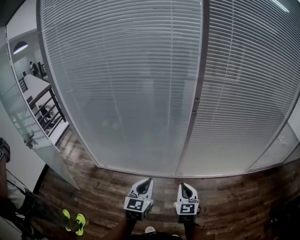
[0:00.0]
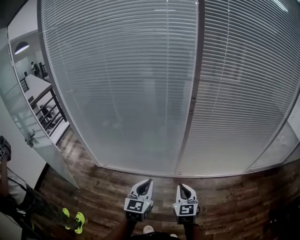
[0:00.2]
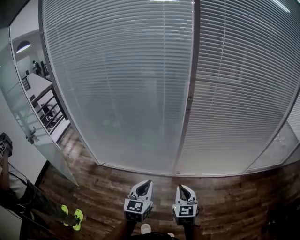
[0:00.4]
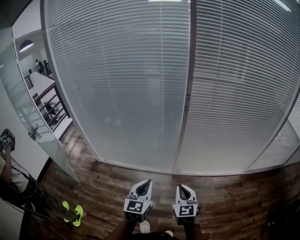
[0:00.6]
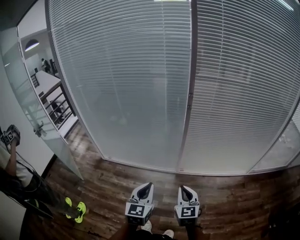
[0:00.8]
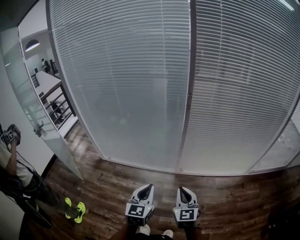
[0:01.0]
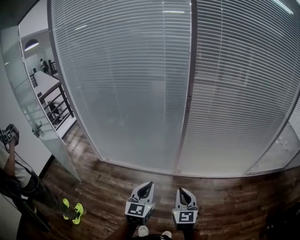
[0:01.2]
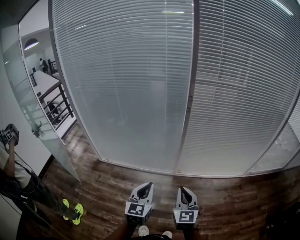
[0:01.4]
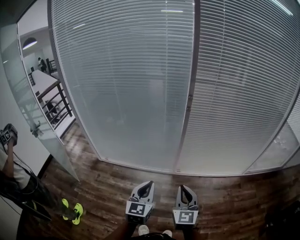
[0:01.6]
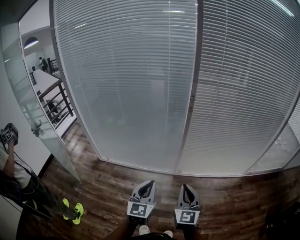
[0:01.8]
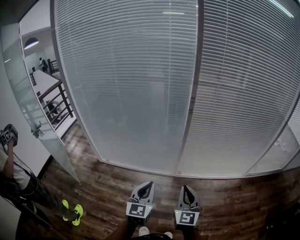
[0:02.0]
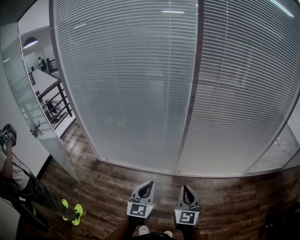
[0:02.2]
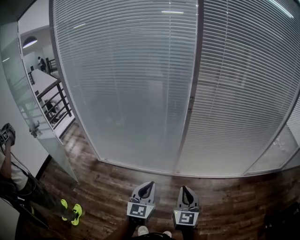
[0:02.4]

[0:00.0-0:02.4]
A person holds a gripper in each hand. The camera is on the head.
0.0 to 1.2 s: The two grippers go about 10 cm backward and to the right.
1.2 to 2.4 s: The grippers move only a little.

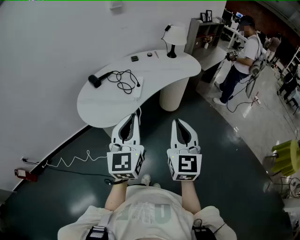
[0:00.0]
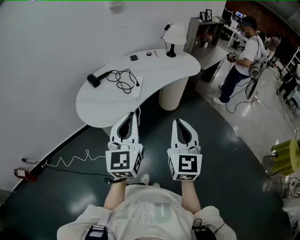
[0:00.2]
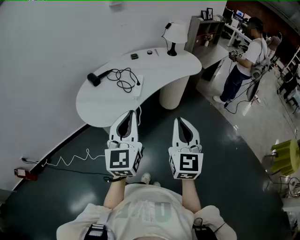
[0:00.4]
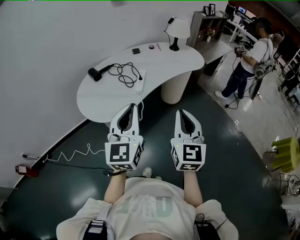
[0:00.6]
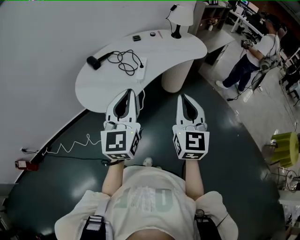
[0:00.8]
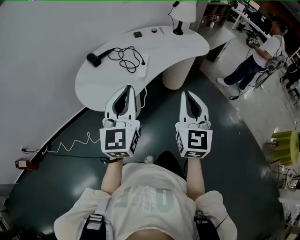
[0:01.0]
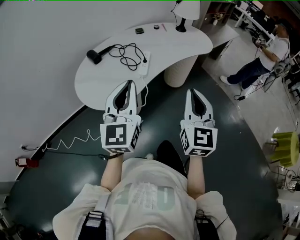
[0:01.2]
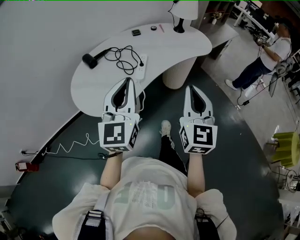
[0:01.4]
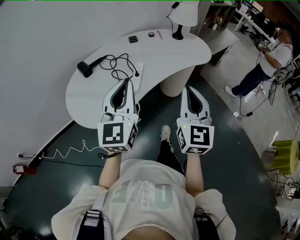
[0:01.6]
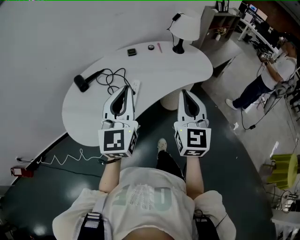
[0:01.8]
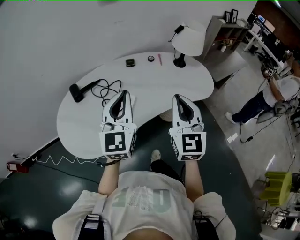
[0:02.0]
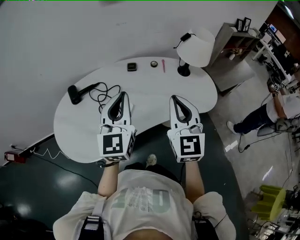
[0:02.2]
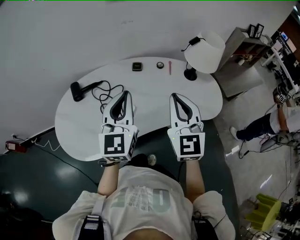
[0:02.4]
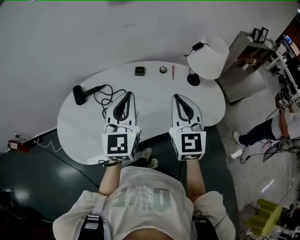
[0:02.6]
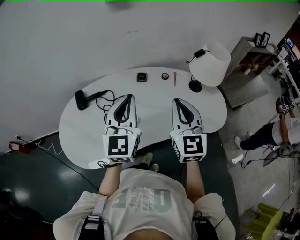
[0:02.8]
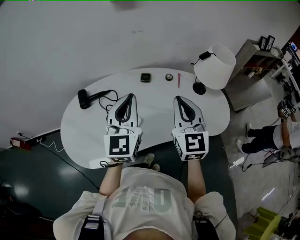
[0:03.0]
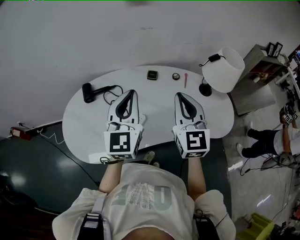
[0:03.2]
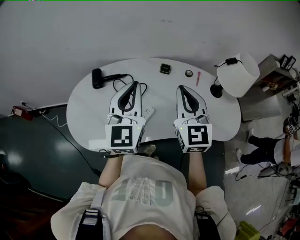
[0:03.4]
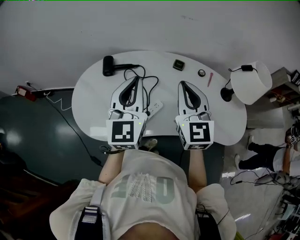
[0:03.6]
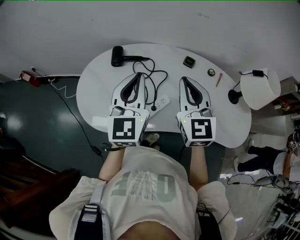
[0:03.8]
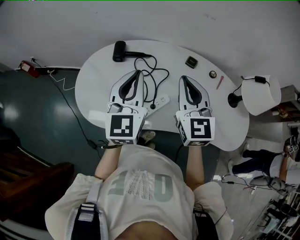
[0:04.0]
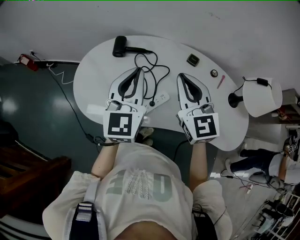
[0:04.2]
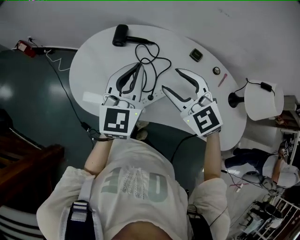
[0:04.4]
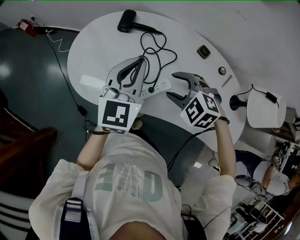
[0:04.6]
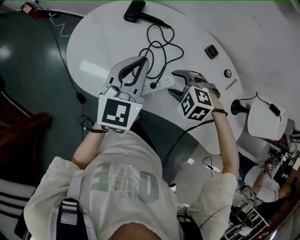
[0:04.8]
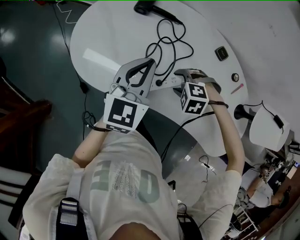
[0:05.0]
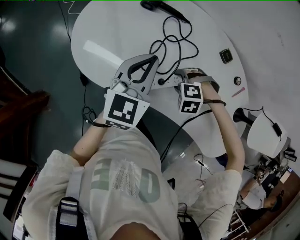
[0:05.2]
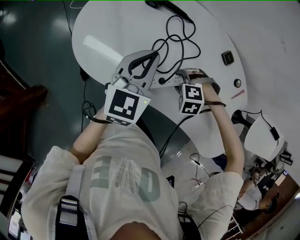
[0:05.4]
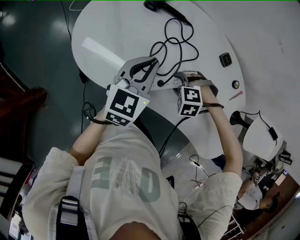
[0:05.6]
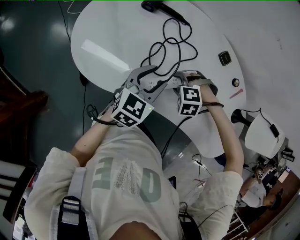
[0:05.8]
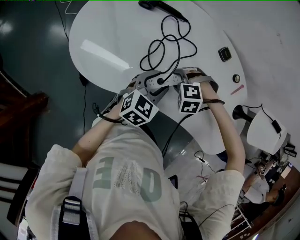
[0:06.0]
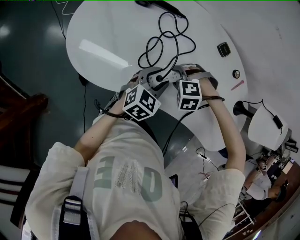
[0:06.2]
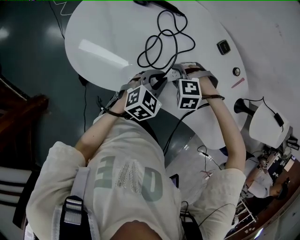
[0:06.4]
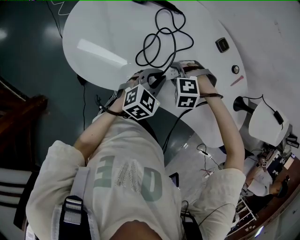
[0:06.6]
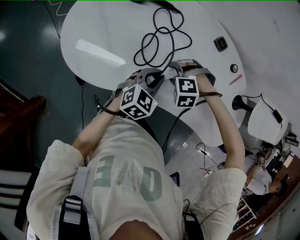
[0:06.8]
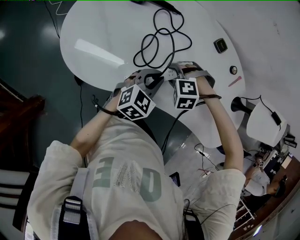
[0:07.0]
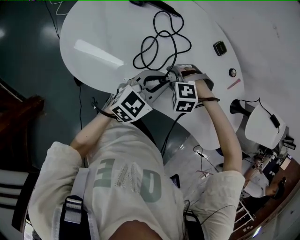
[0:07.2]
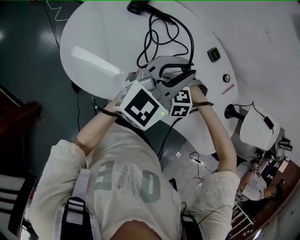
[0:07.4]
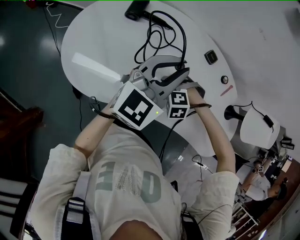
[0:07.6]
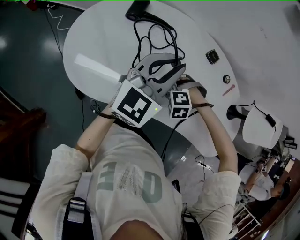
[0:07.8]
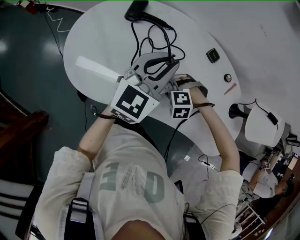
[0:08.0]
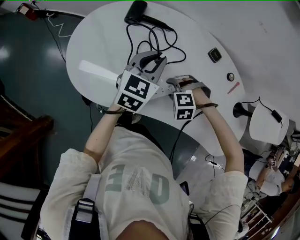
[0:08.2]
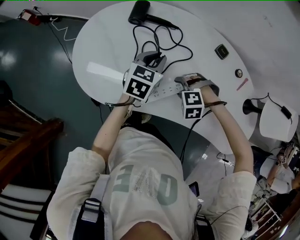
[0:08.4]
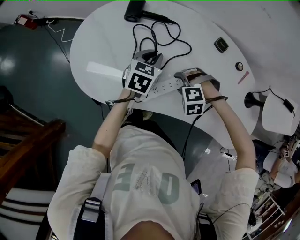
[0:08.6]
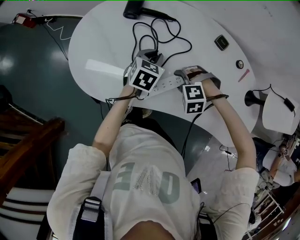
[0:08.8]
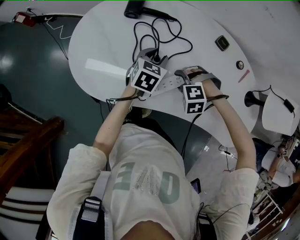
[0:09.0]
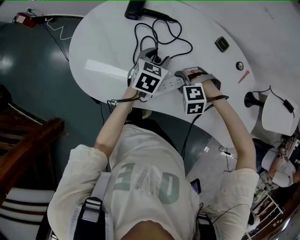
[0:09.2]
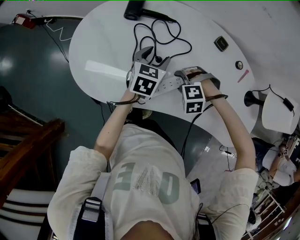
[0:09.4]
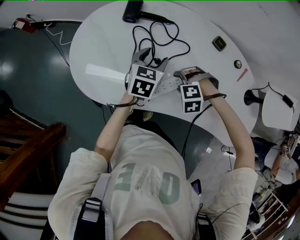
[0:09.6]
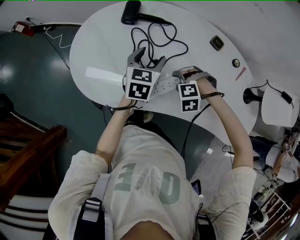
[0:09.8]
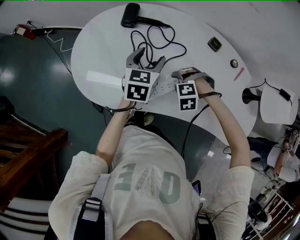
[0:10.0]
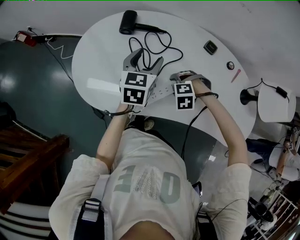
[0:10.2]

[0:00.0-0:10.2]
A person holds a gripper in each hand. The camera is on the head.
0.0 to 1.4 s: The two grippers go approximately 10 cm forward.
1.4 to 3.0 s: The left gripper moves approximately 40 cm, and turns by roughly 20 degrees; the right gripper moves roughly 40 cm, and changes its angle by roughly 30 degrees.
3.0 to 4.4 s: The right gripper changes place by roughly 20 cm, turns by roughly 70 degrees, and opens. The left gripper moves roughly 15 cm, and swivels roughly 20 degrees.
4.4 to 5.8 s: The two grippers go roughly 20 cm downward. The right gripper points its fingers roughly 60 degrees further downward; the left gripper rotates about 30 degrees, and opens up.
5.8 to 7.2 s: The left gripper closes its fingers.
7.2 to 8.8 s: The left gripper reaches approximately 15 cm upward, then returns, and turns by roughly 30 degrees.
8.8 to 10.2 s: The left gripper travels upward by about 10 cm, and opens.

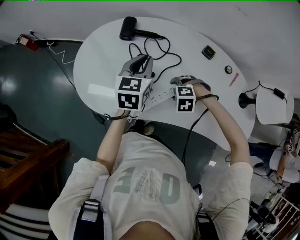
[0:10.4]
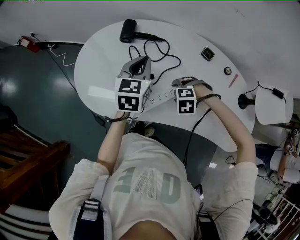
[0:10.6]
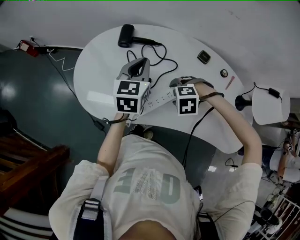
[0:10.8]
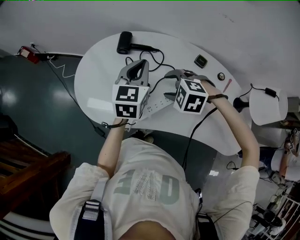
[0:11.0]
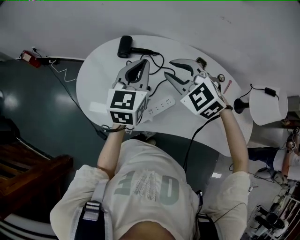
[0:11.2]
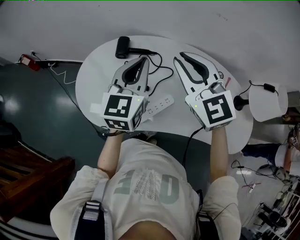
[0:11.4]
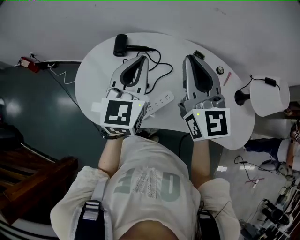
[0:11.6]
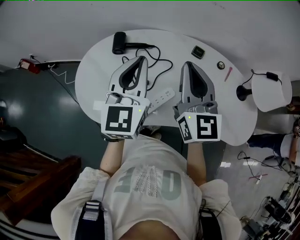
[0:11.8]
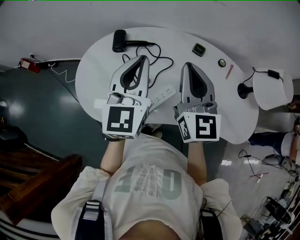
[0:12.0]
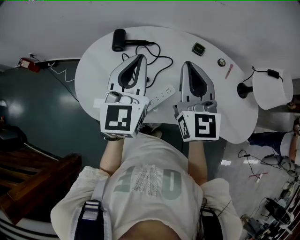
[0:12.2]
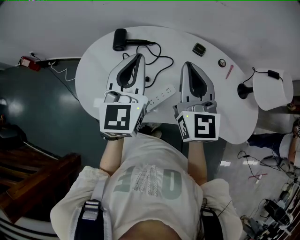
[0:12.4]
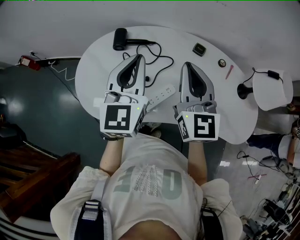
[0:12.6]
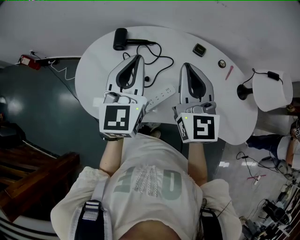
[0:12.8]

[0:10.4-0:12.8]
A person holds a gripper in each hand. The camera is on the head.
10.4 to 11.6 s: The left gripper travels upward by about 15 cm, and rotates roughly 20 degrees. The right gripper moves upward, roughly 35 cm, tips its fingers upward by about 90 degrees, and closes.
11.6 to 12.8 s: The right gripper shifts by roughly 5 cm.

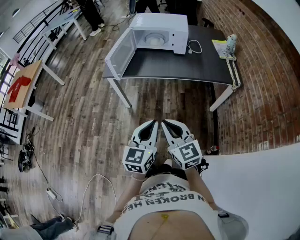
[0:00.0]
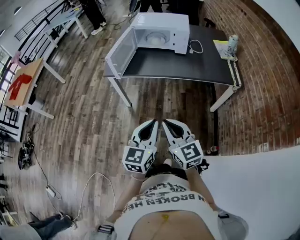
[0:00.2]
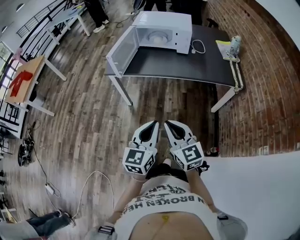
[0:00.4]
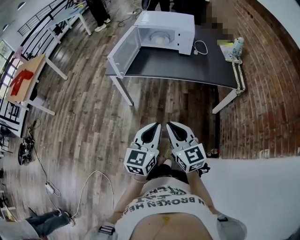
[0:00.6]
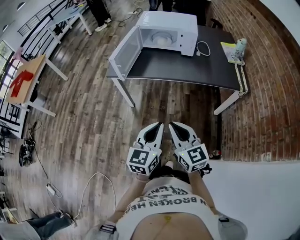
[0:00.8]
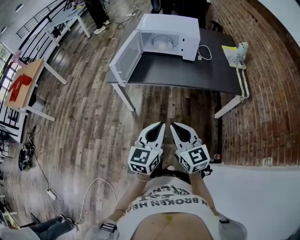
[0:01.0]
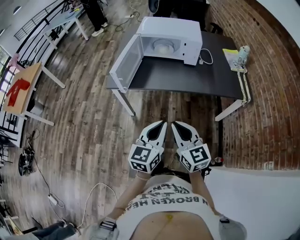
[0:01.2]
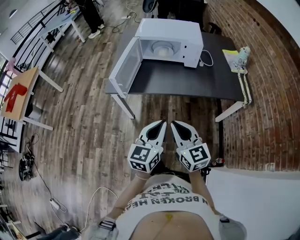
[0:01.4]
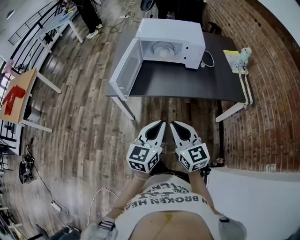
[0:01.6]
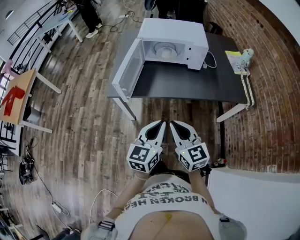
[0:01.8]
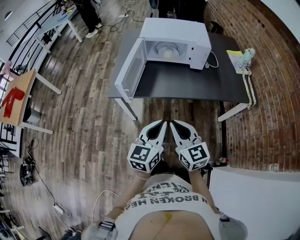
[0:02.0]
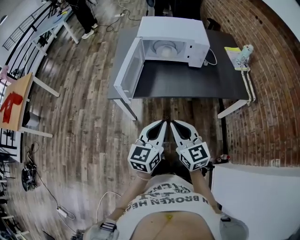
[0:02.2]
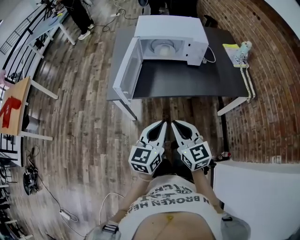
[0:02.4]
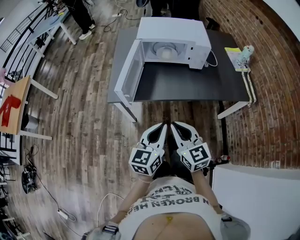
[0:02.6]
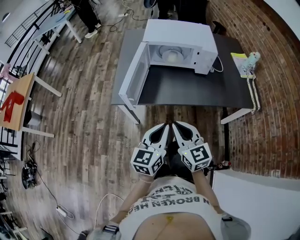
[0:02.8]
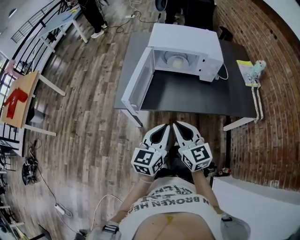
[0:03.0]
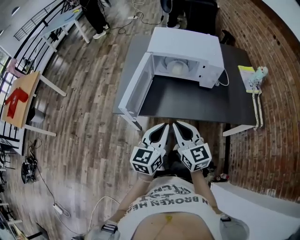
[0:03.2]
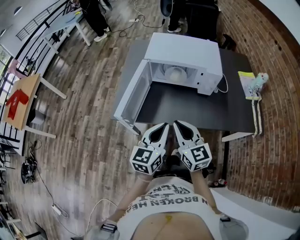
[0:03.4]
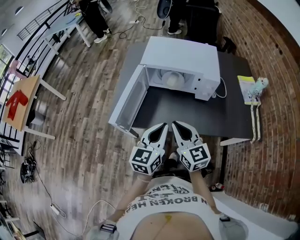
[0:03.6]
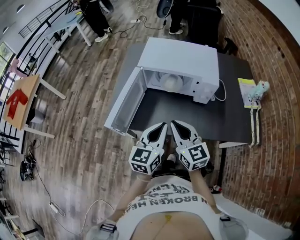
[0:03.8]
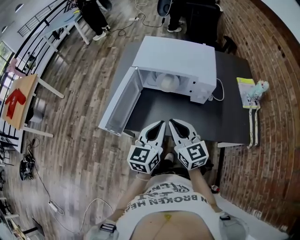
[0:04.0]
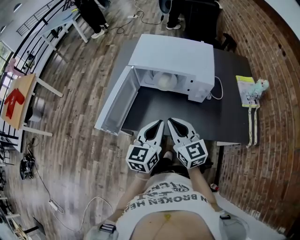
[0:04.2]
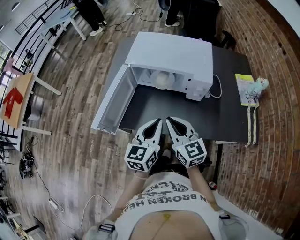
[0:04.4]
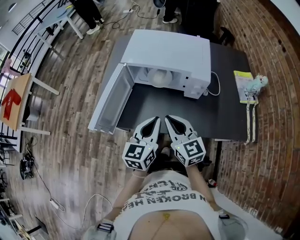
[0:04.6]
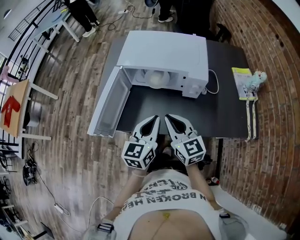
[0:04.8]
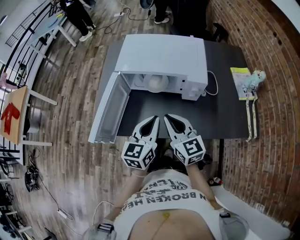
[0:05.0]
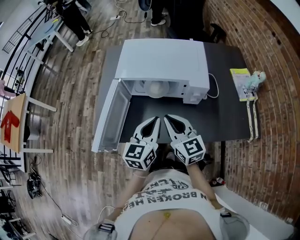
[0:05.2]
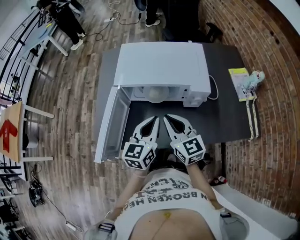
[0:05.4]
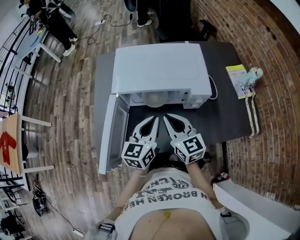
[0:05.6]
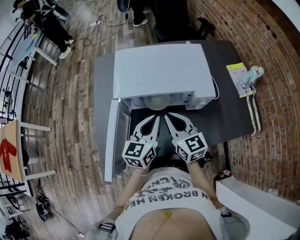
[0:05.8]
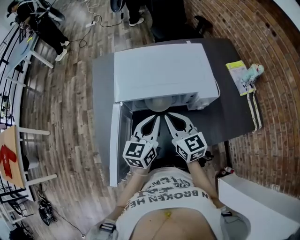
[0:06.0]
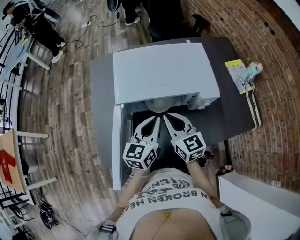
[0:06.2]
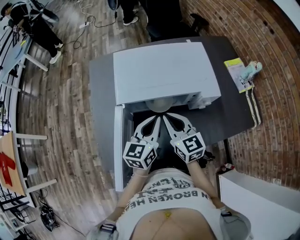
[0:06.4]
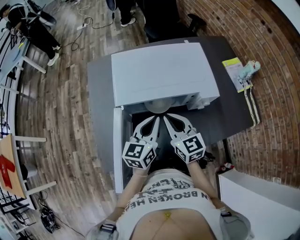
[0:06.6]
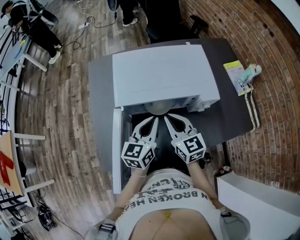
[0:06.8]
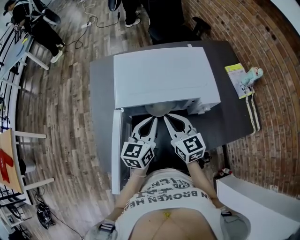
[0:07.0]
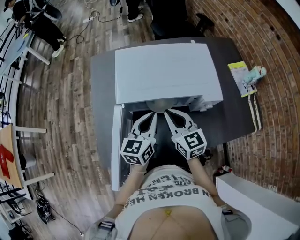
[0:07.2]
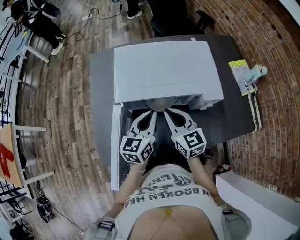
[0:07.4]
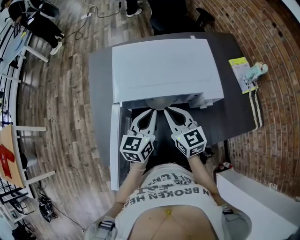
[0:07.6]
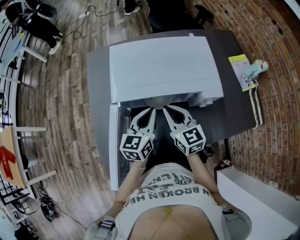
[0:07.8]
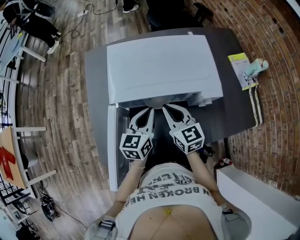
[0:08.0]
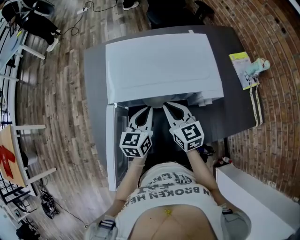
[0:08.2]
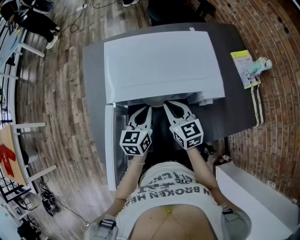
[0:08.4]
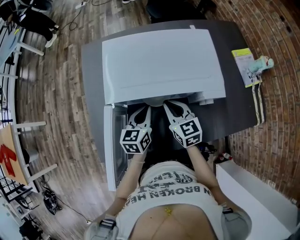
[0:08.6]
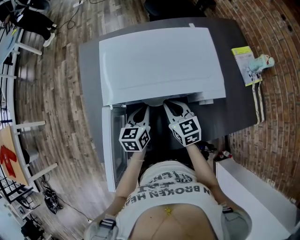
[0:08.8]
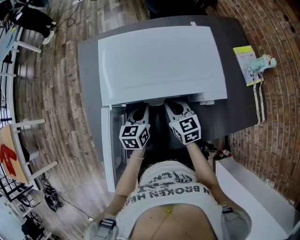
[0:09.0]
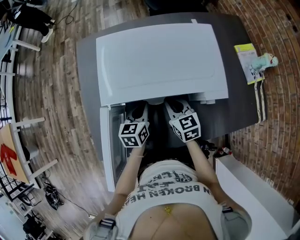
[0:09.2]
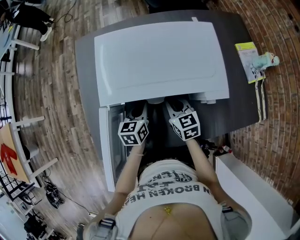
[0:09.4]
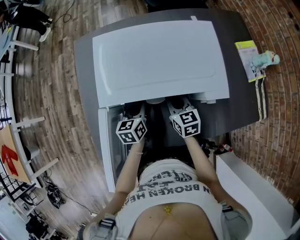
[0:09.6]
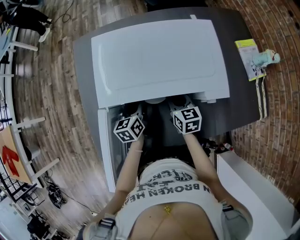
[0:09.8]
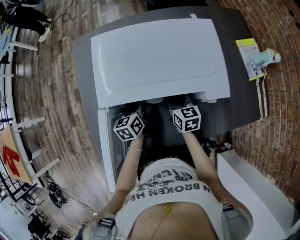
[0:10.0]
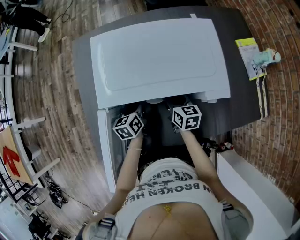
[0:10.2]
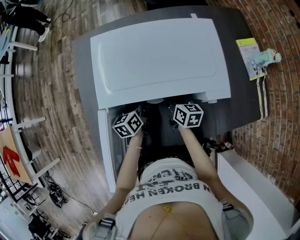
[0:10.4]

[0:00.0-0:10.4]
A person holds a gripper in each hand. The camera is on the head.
0.0 to 1.4 s: The two grippers go roughly 20 cm forward.
1.4 to 3.0 s: Both grippers travel together forward and to the left, about 15 cm.
3.0 to 4.4 s: The two grippers go approximately 20 cm forward and to the right.
4.4 to 6.0 s: Both grippers move forward, roughly 20 cm.
6.0 to 7.4 s: The grippers move only a little.
7.4 to 9.0 s: The two grippers go about 10 cm downward.
9.0 to 10.4 s: The grippers both shift downward by roughly 5 cm. The left gripper opens its fingers. The right gripper changes its angle by roughly 30 degrees, and opens up.
